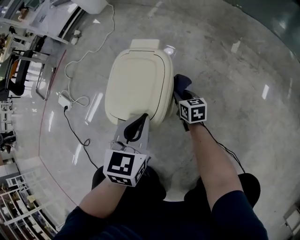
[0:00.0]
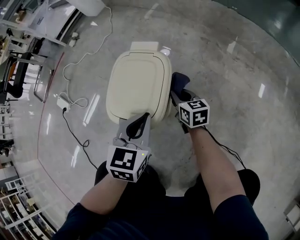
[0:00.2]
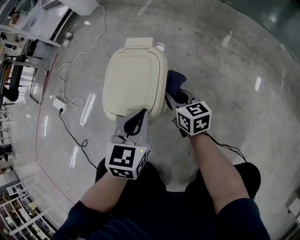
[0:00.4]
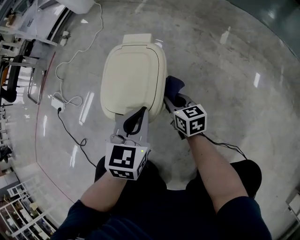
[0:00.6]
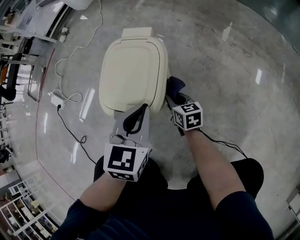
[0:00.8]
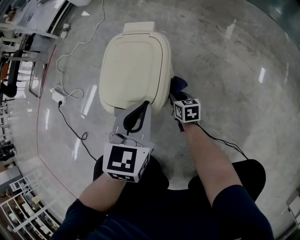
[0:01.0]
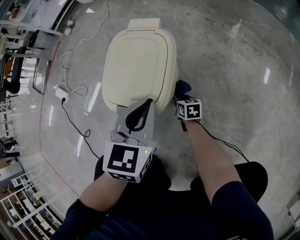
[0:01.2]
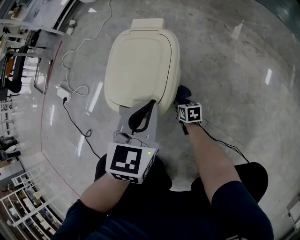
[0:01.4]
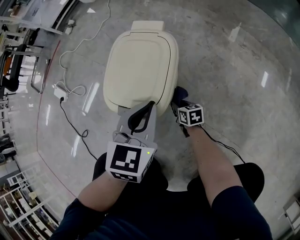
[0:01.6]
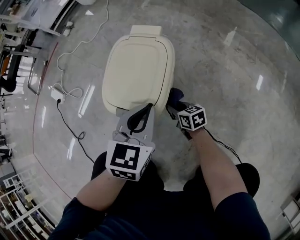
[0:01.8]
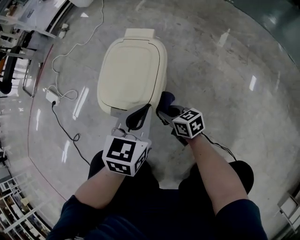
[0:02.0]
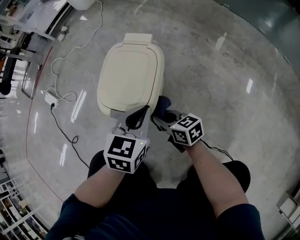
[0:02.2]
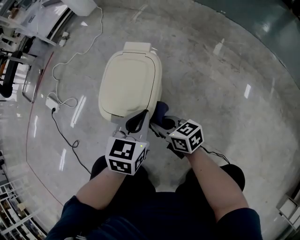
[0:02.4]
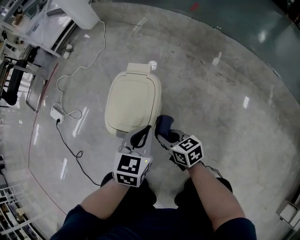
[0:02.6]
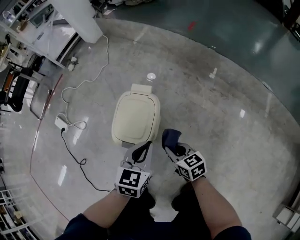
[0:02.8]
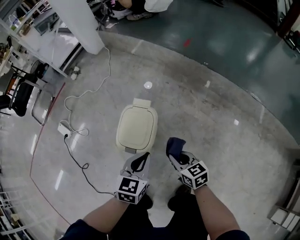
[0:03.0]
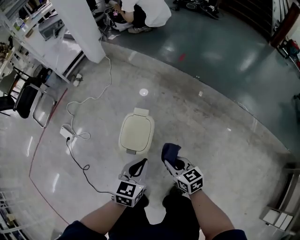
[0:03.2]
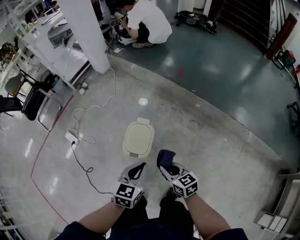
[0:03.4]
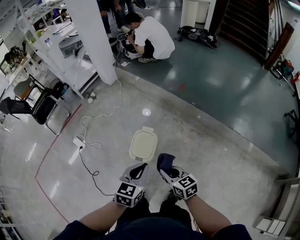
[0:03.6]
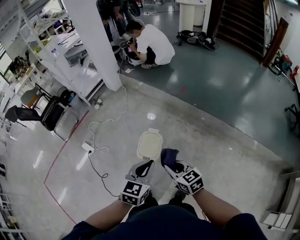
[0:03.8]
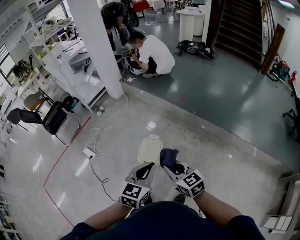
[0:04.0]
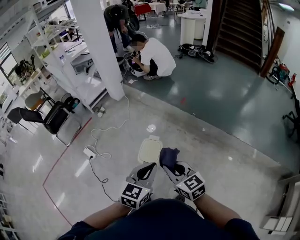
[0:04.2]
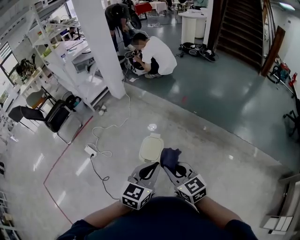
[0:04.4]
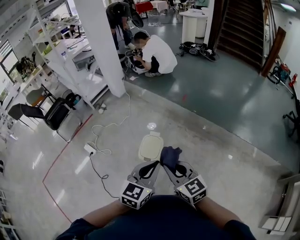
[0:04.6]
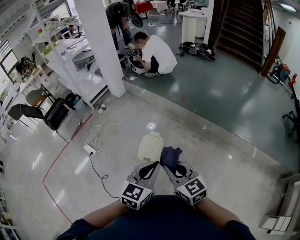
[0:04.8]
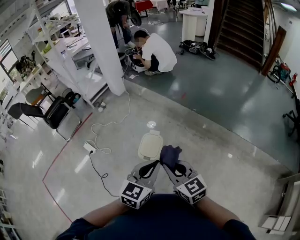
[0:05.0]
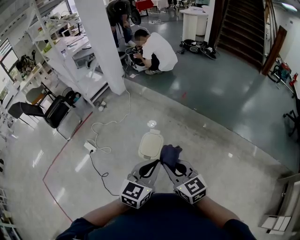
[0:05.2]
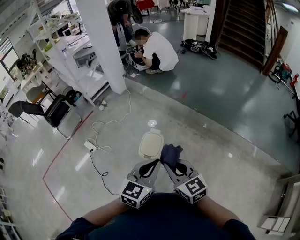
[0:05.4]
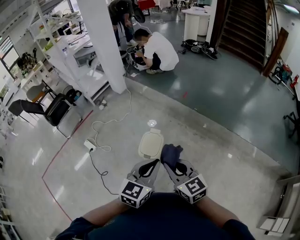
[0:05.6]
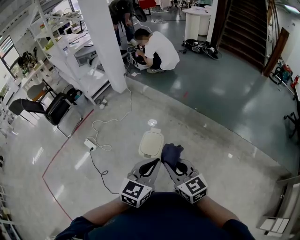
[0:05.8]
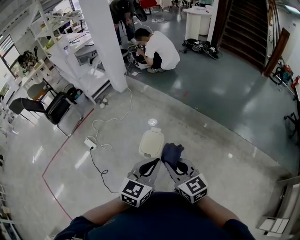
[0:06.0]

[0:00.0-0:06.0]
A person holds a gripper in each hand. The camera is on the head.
0.0 to 1.6 s: The right gripper shifts about 15 cm backward, downward and to the left.
1.6 to 3.0 s: The right gripper is displaced upward by some 40 cm; the left gripper travels upward by some 20 cm.
3.0 to 4.4 s: Both grippers move upward, approximately 50 cm. The right gripper swivels roughly 20 degrees.
4.4 to 6.0 s: The grippers stay close to where they were, moving slightly.

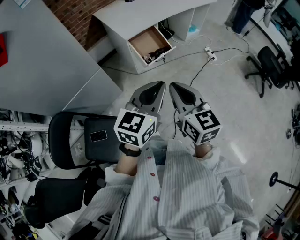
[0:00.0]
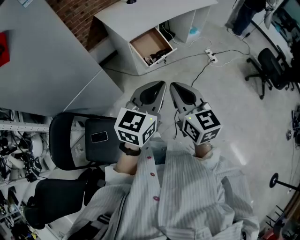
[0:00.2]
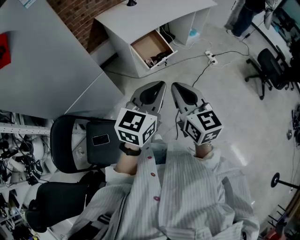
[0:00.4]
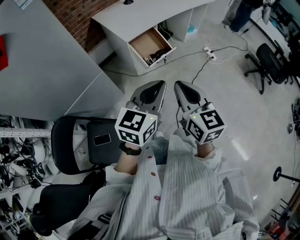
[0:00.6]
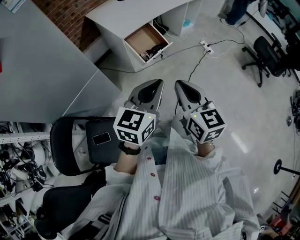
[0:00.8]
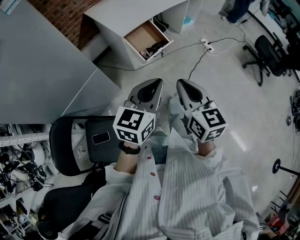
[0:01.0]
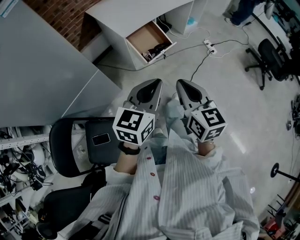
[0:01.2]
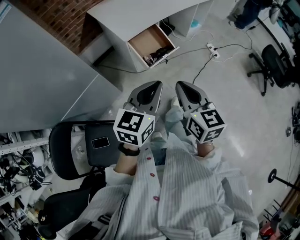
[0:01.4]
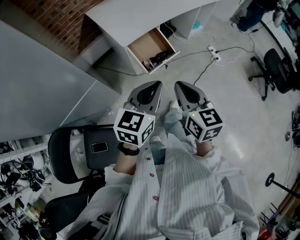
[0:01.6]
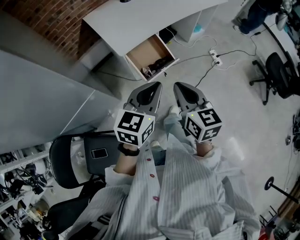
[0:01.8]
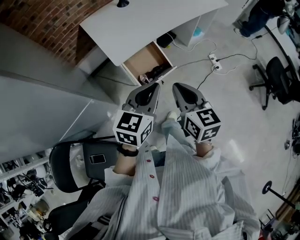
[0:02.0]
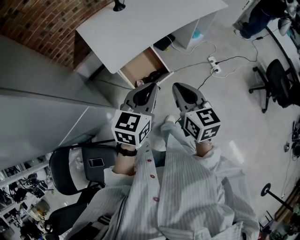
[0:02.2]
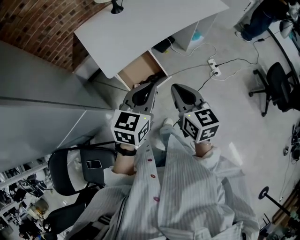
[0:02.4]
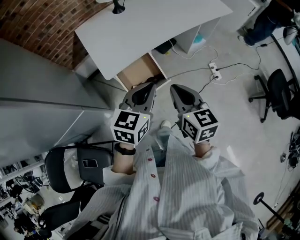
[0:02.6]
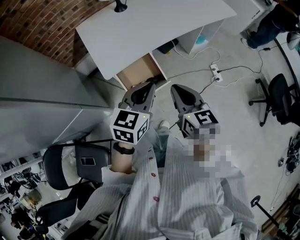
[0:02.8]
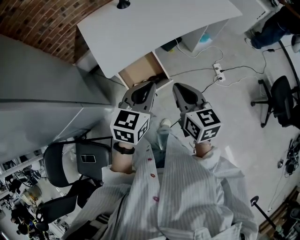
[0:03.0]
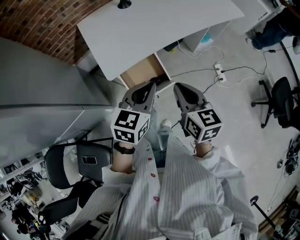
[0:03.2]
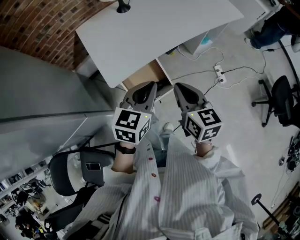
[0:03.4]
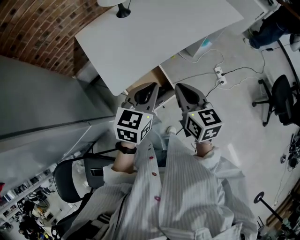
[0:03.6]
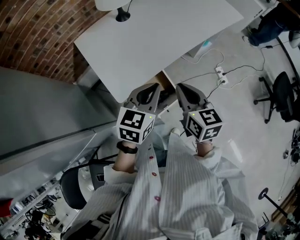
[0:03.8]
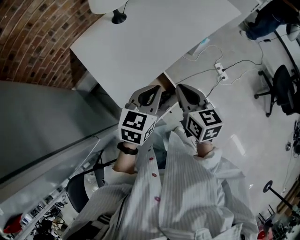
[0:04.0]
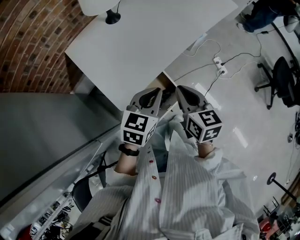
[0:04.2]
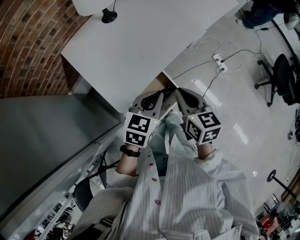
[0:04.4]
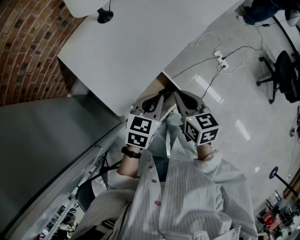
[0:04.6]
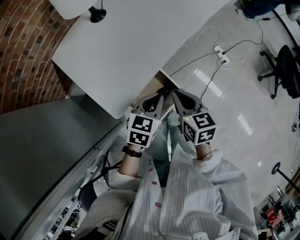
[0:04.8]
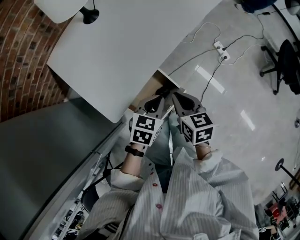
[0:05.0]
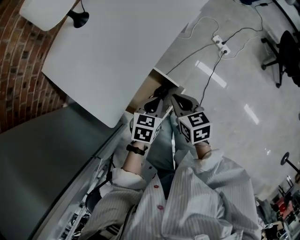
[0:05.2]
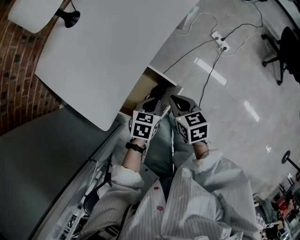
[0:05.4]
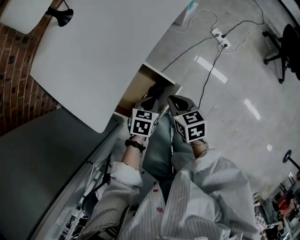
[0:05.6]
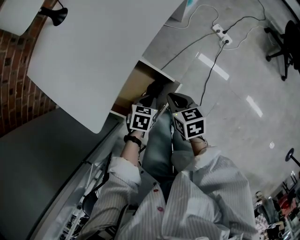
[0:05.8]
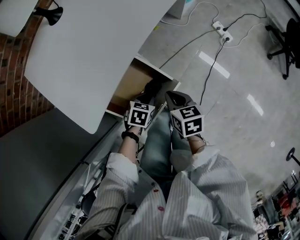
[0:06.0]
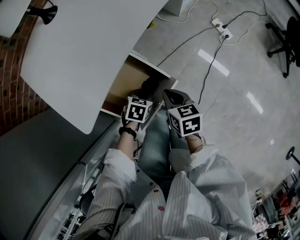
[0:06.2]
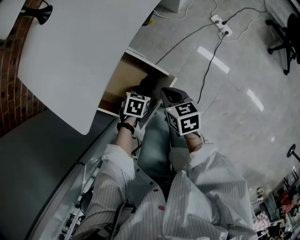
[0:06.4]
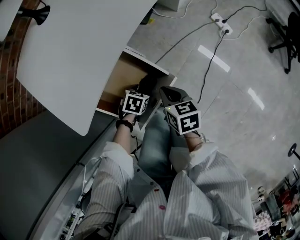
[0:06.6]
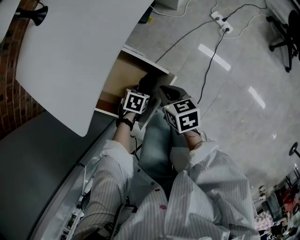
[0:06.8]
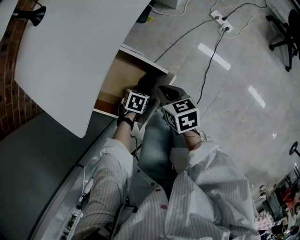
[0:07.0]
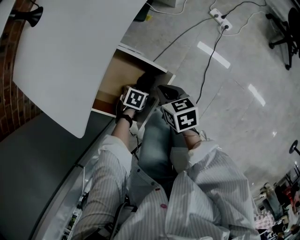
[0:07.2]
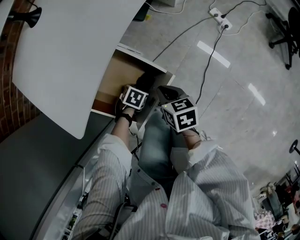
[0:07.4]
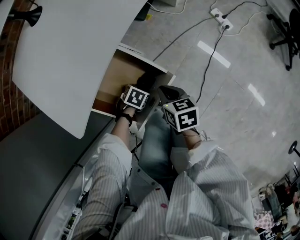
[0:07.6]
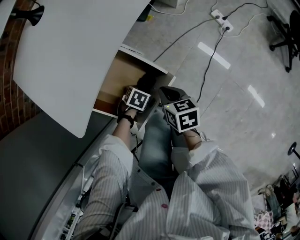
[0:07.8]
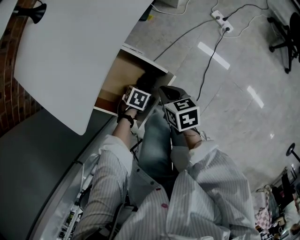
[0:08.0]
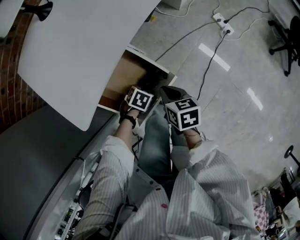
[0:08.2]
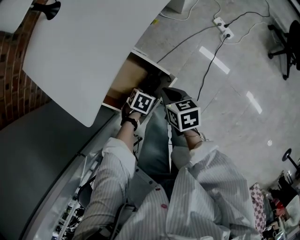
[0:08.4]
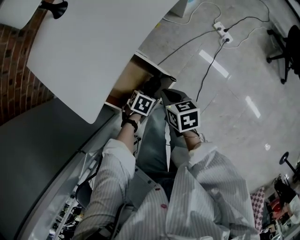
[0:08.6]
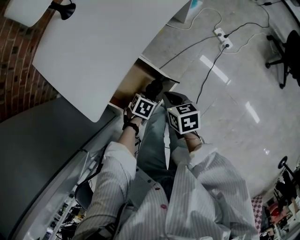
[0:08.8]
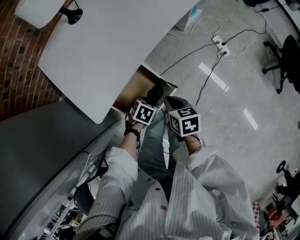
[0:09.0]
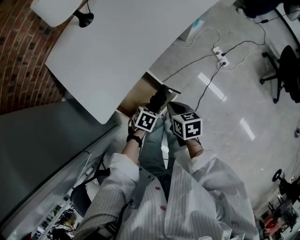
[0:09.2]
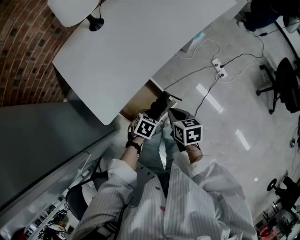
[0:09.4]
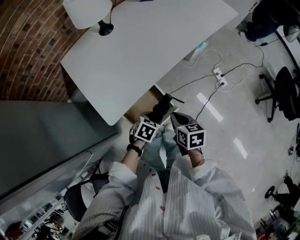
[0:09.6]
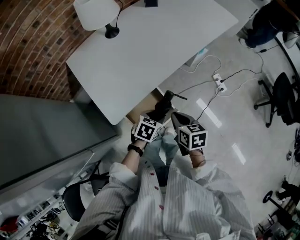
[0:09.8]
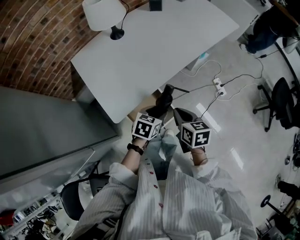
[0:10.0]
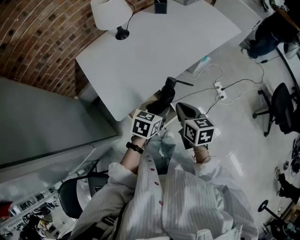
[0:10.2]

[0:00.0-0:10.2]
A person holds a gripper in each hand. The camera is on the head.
0.0 to 1.4 s: Both grippers move forward, some 10 cm.
1.4 to 3.0 s: Both grippers travel together forward, some 35 cm.
3.0 to 4.4 s: The left gripper travels forward, downward and to the left by about 20 cm, and turns by about 20 degrees. The right gripper goes approximately 20 cm forward, to the left and downward.
4.4 to 5.8 s: The grippers both shift downward by approximately 30 cm. The left gripper turns by some 30 degrees.
5.8 to 7.2 s: The left gripper moves downward, about 15 cm, swivels about 20 degrees, and opens up. Meanwhile the right gripper shifts about 5 cm downward.
7.2 to 8.8 s: The two grippers go some 10 cm upward.
8.8 to 10.2 s: Both grippers move upward, approximately 30 cm. The left gripper tilts its fingers about 30 degrees upward.

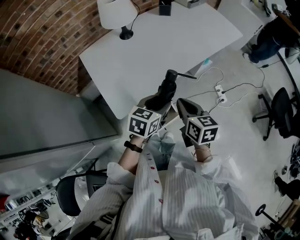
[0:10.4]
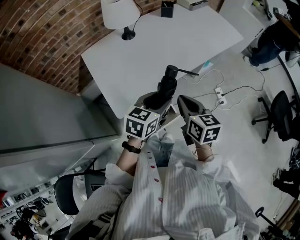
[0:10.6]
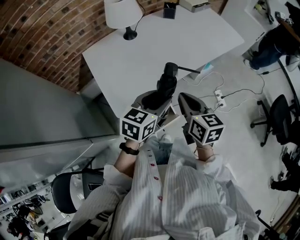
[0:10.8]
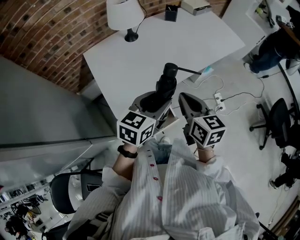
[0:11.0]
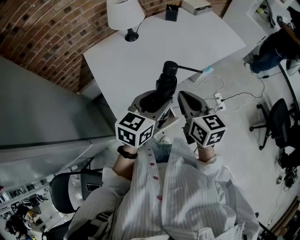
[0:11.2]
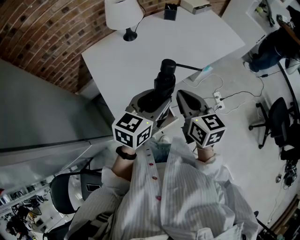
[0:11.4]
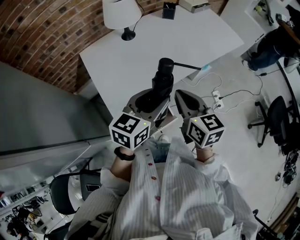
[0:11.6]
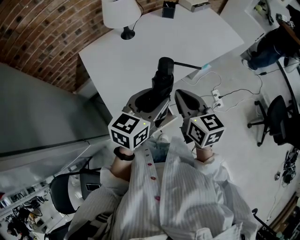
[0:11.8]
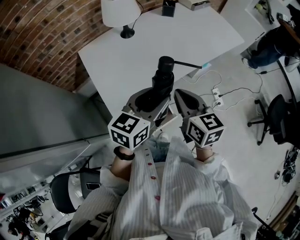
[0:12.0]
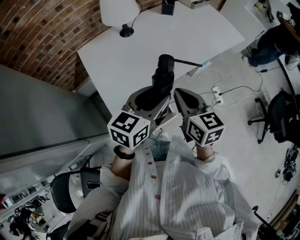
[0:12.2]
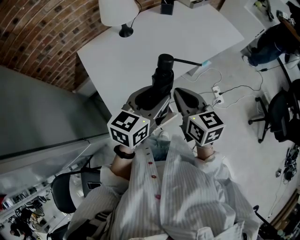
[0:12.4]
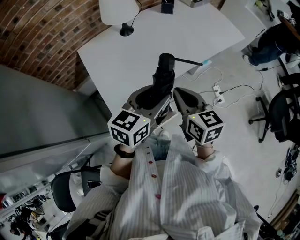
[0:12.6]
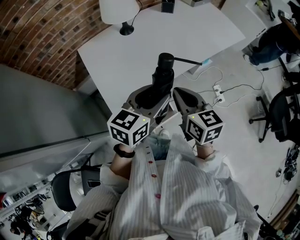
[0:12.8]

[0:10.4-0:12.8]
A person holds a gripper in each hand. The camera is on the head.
10.4 to 11.6 s: Both grippers travel together upward, roughly 10 cm.
11.6 to 12.8 s: The grippers move only a little.

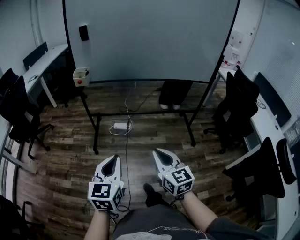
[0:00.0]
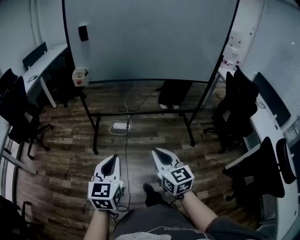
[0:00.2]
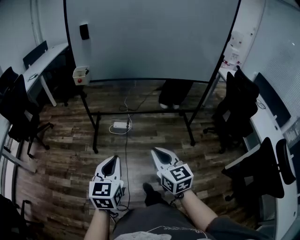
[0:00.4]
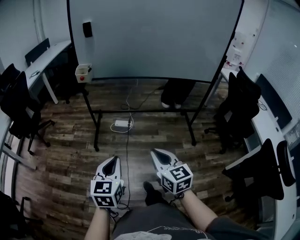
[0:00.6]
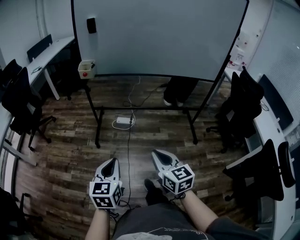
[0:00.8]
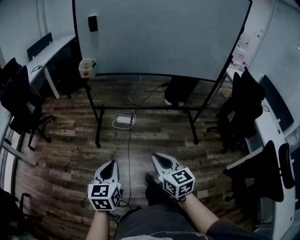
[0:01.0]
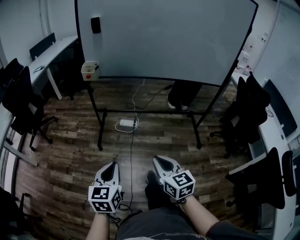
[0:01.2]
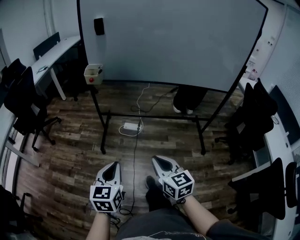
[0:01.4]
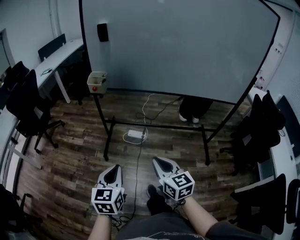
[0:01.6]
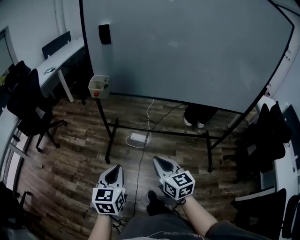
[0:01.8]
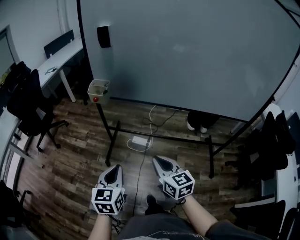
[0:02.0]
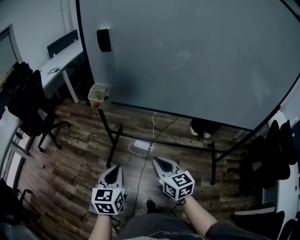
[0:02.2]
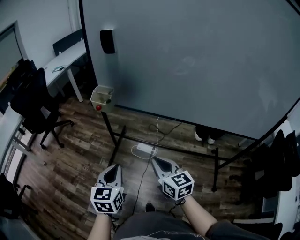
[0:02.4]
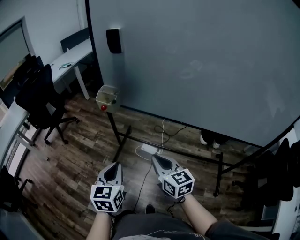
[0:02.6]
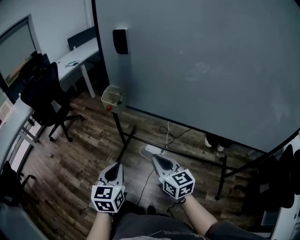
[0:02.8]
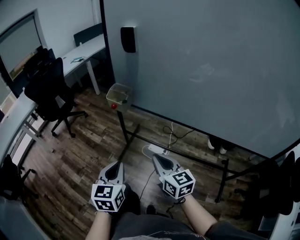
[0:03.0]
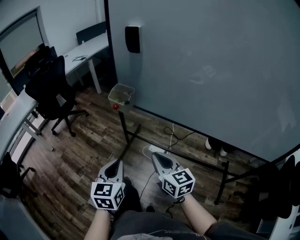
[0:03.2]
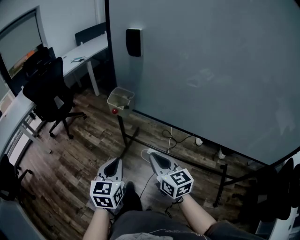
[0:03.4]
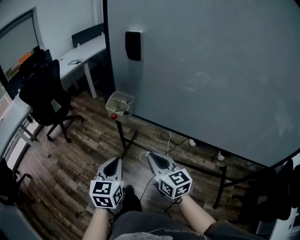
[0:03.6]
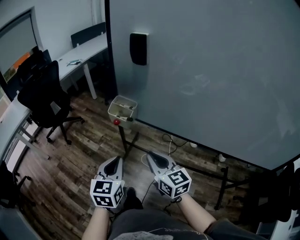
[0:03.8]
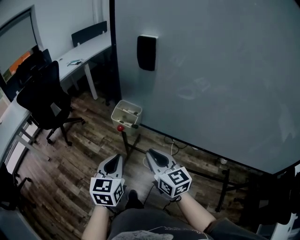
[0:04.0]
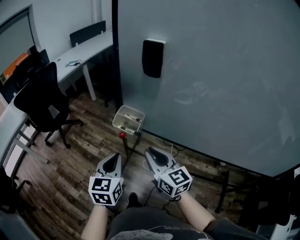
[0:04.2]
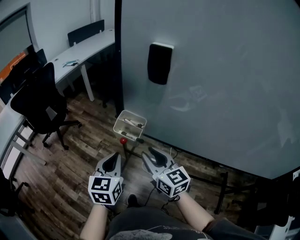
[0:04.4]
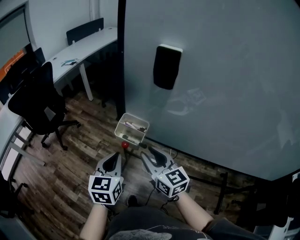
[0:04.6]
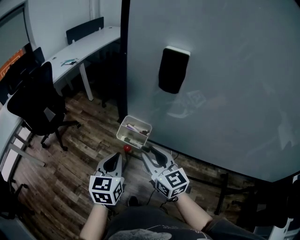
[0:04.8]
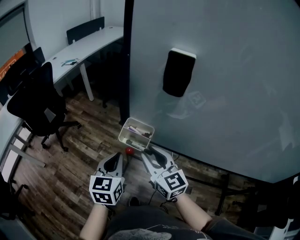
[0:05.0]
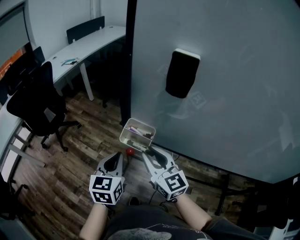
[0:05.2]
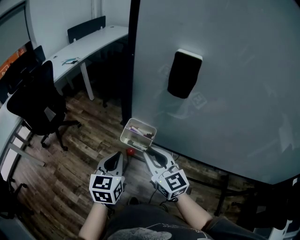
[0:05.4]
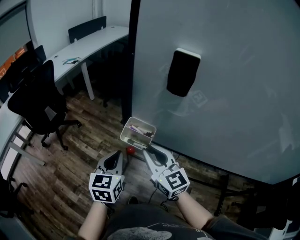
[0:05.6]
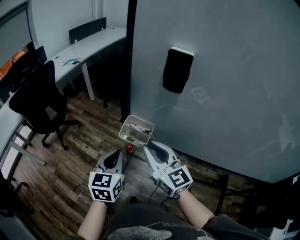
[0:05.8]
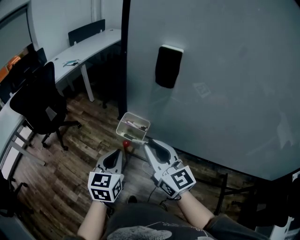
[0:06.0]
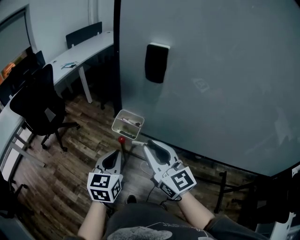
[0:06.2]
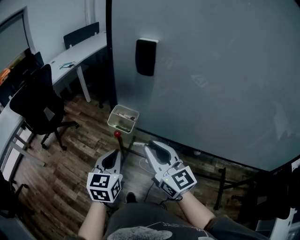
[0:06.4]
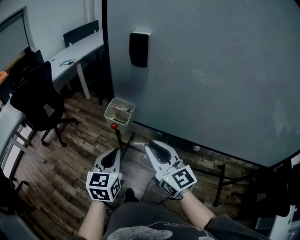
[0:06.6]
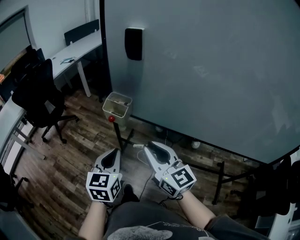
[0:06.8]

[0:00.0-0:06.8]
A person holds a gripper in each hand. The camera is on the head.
0.0 to 1.4 s: The left gripper travels forward, downward and to the left by some 10 cm. The right gripper heads forward and to the left, covering about 10 cm.
1.4 to 2.8 s: Both grippers travel together forward, about 30 cm. The right gripper turns by some 20 degrees.
2.8 to 4.0 s: The right gripper moves forward and to the left, about 20 cm; the left gripper moves forward, about 15 cm.
4.0 to 5.4 s: The two grippers go about 15 cm forward.
5.4 to 6.8 s: The left gripper travels backward by about 15 cm. The right gripper is displaced backward and to the right by about 20 cm.
